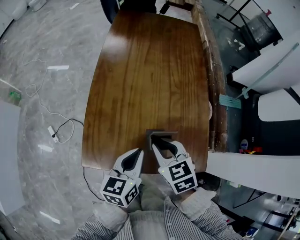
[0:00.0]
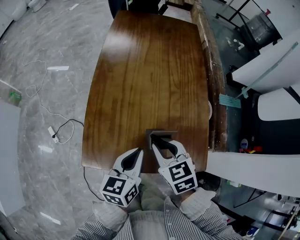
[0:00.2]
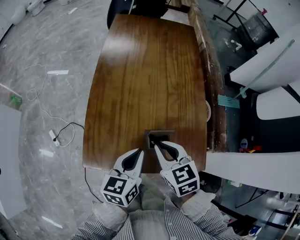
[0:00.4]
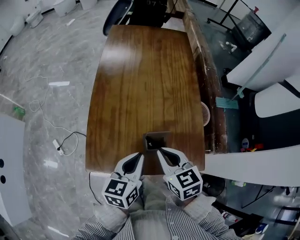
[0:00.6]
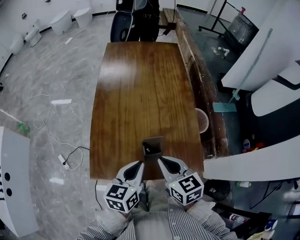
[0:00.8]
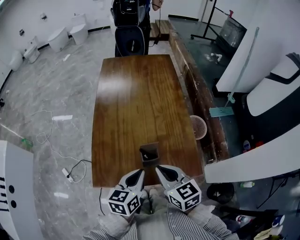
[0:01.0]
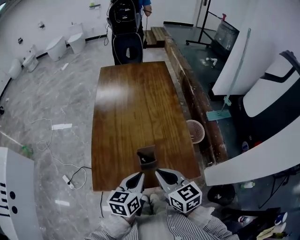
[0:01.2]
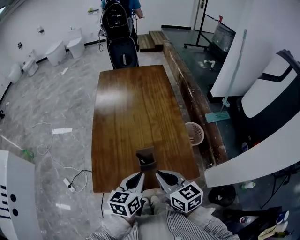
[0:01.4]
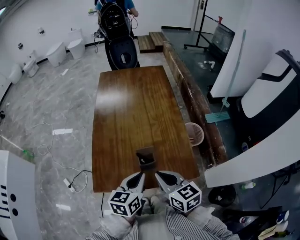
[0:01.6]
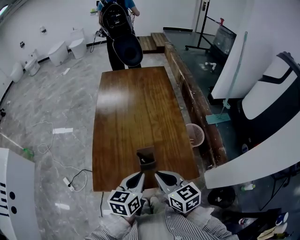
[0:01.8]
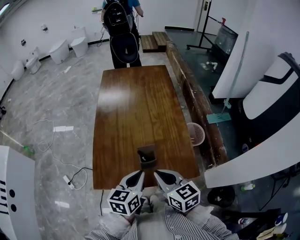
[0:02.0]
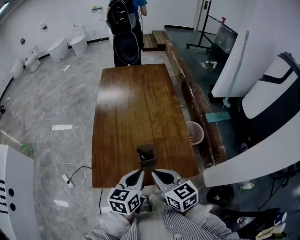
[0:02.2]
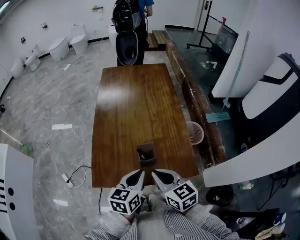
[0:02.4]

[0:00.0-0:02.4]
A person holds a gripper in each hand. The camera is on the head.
0.0 to 1.2 s: The left gripper moves some 5 cm. Meanwhile the right gripper travels upward and backward by approximately 10 cm, and turns by approximately 30 degrees.
1.2 to 2.4 s: There are only small adjustments of the grippers.

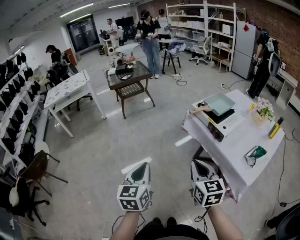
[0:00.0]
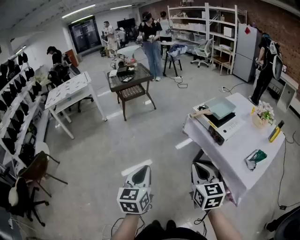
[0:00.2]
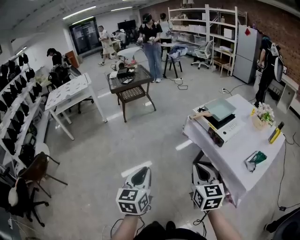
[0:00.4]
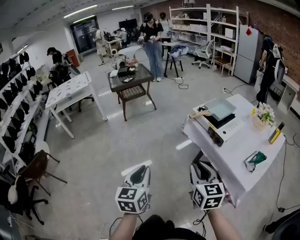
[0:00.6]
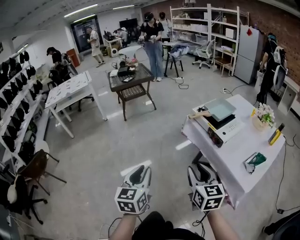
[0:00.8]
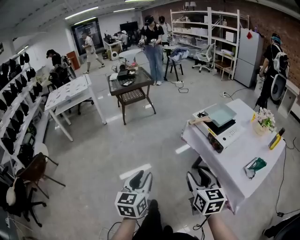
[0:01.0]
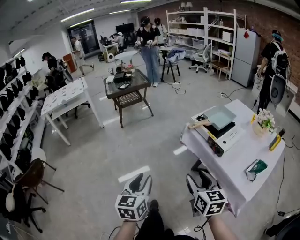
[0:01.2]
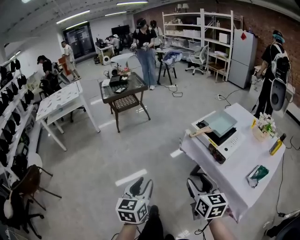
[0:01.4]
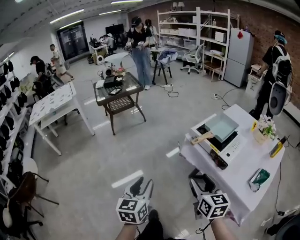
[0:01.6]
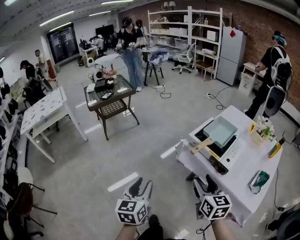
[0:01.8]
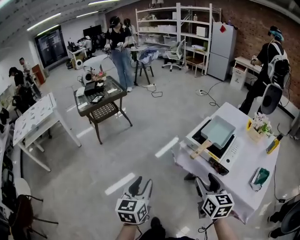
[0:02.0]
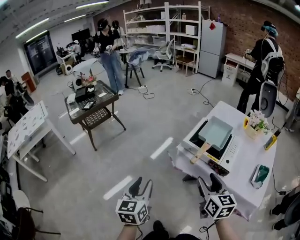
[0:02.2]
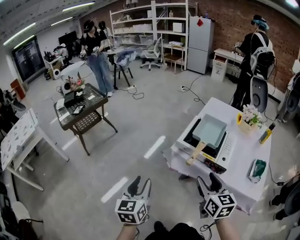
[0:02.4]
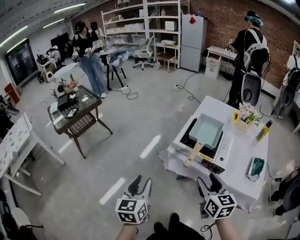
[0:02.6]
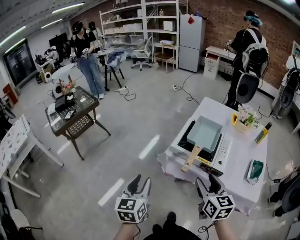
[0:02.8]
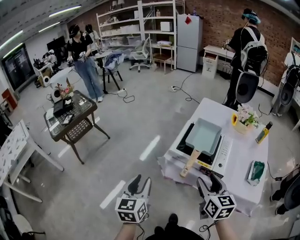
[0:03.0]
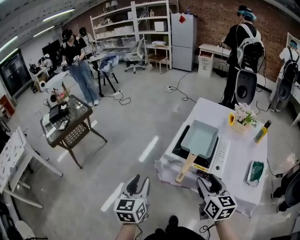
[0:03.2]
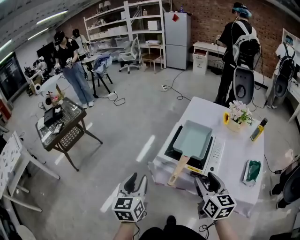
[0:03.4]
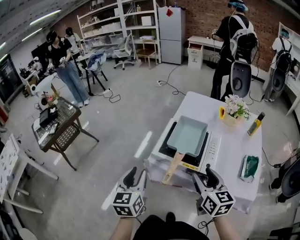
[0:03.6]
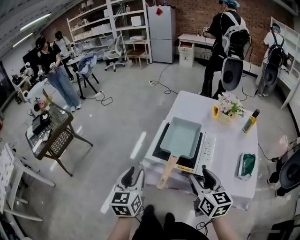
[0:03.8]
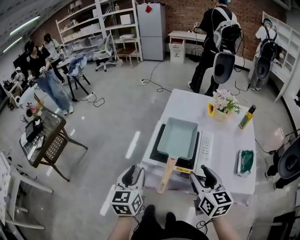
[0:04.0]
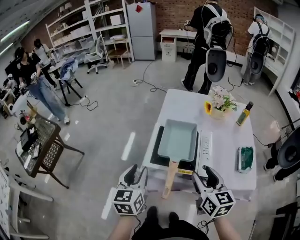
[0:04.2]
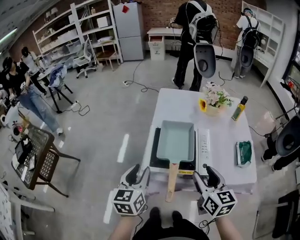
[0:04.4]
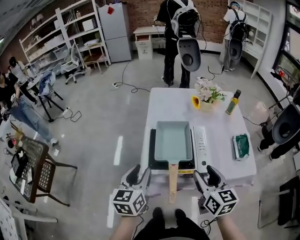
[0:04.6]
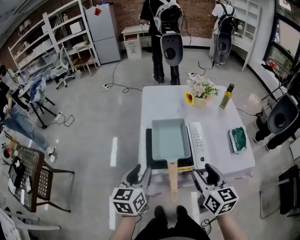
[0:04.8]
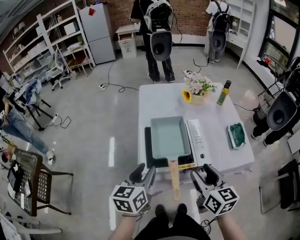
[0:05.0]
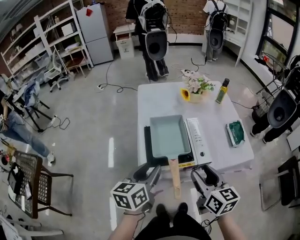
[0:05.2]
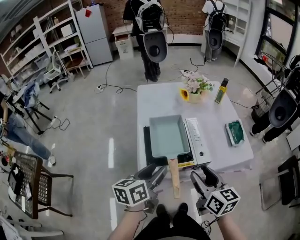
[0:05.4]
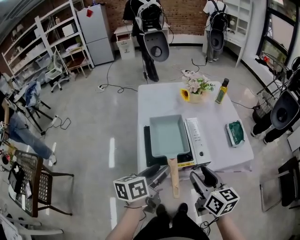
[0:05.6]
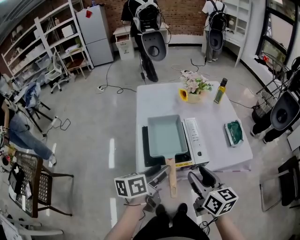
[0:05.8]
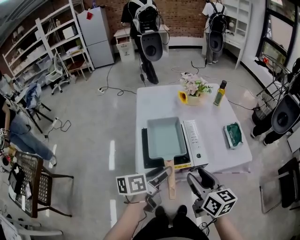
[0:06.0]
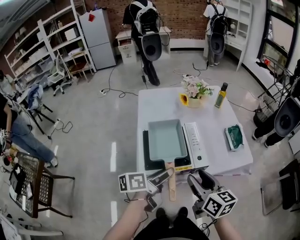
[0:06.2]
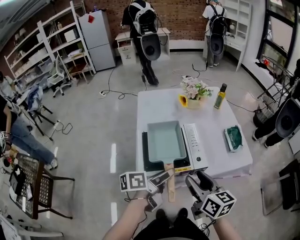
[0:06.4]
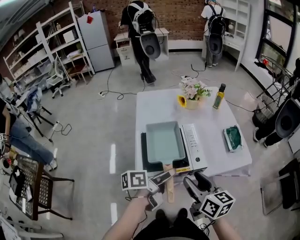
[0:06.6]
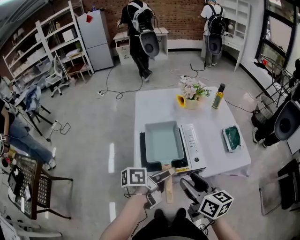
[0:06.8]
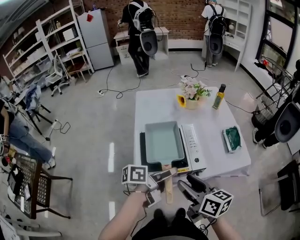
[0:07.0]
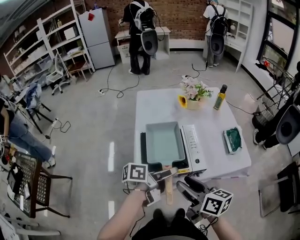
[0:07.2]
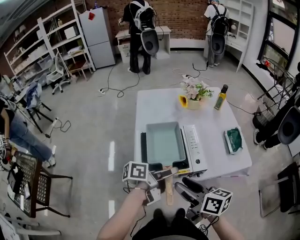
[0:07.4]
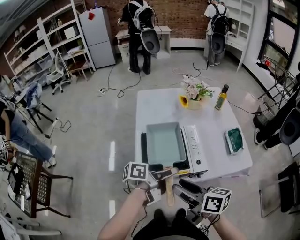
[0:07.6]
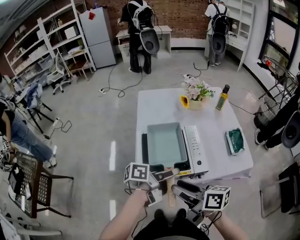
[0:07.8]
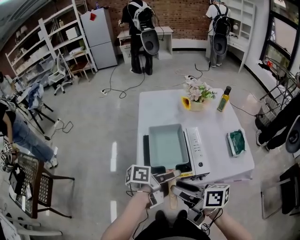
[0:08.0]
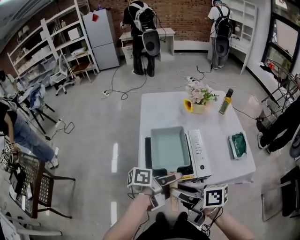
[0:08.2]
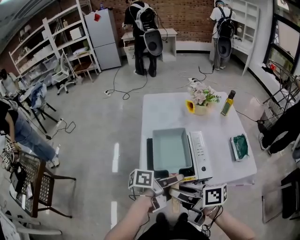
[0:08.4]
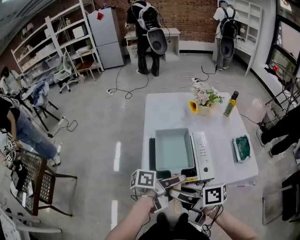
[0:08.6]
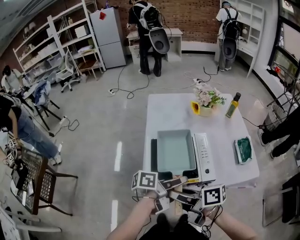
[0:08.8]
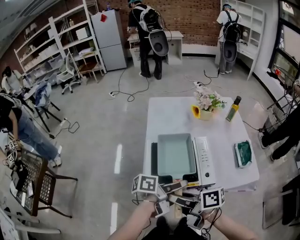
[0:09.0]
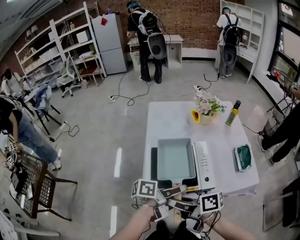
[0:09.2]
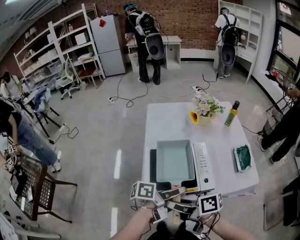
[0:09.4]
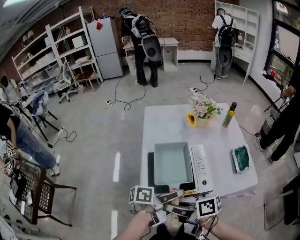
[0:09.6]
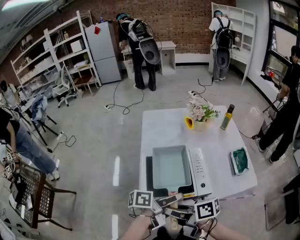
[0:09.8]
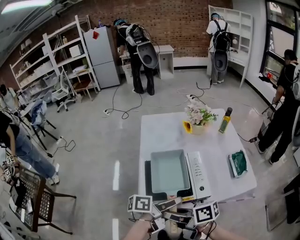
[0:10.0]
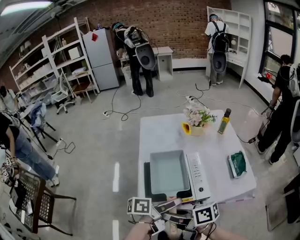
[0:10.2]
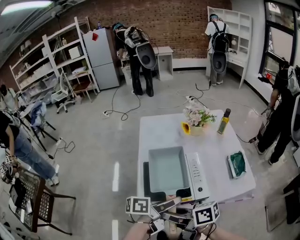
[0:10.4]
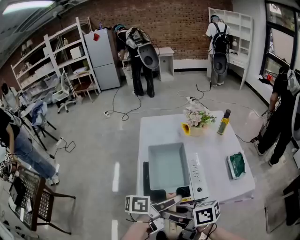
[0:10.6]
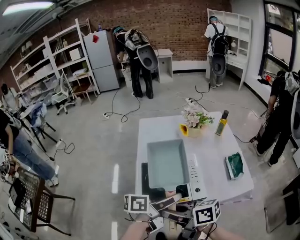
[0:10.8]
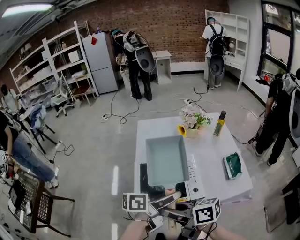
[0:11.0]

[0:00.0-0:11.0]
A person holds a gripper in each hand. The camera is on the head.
0.0 to 1.6 s: The grippers both shift forward by roughly 15 cm. The right gripper opens its fingers, while the left gripper opens up.
1.6 to 3.2 s: The left gripper moves about 30 cm, and changes its angle by approximately 20 degrees. Meanwhile the right gripper changes place by approximately 20 cm, and rotates some 30 degrees.
3.2 to 4.8 s: The right gripper ends up some 10 cm from where it was, and changes its angle by about 30 degrees; the left gripper changes place by roughly 20 cm, and swivels about 40 degrees.
4.8 to 6.2 s: The left gripper moves to the right, some 10 cm, swivels roughly 50 degrees, and opens up.
6.2 to 7.8 s: The right gripper goes about 5 cm to the left, and swivels approximately 40 degrees.
7.8 to 9.4 s: The right gripper shifts by some 5 cm, turns by some 20 degrees, and closes its fingers.
9.4 to 11.0 s: The left gripper travels upward by roughly 5 cm; the right gripper moves about 5 cm.

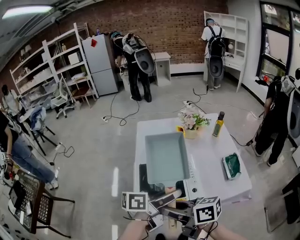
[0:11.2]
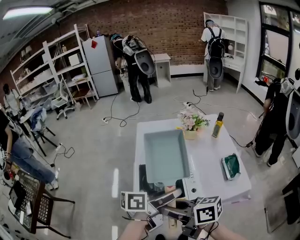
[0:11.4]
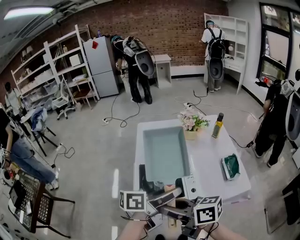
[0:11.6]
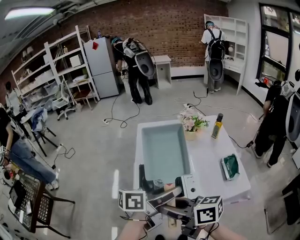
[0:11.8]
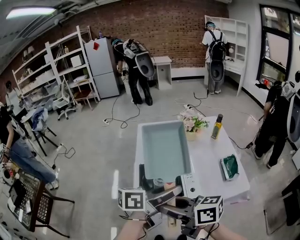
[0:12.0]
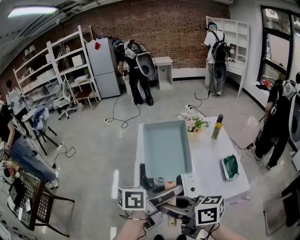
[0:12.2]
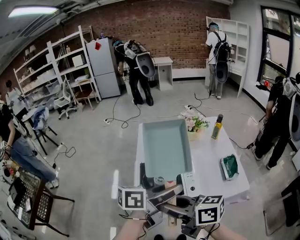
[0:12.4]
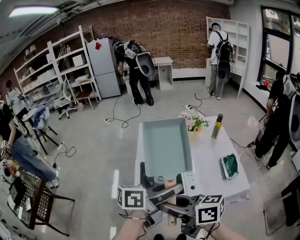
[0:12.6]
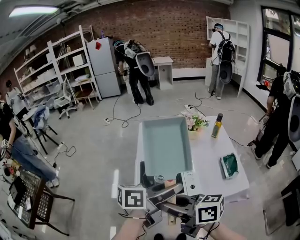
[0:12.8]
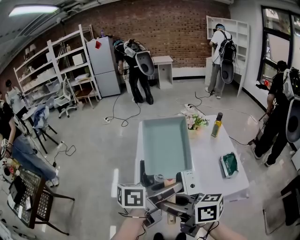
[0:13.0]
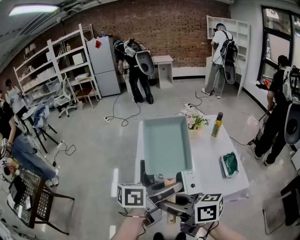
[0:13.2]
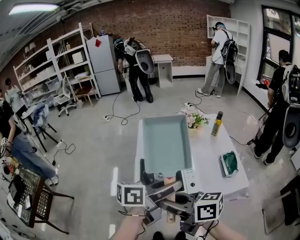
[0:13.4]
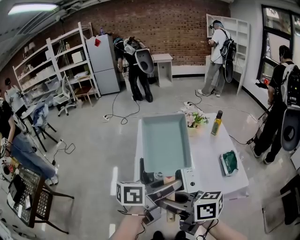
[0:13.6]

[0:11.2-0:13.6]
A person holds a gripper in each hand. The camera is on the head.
11.2 to 12.4 s: The two grippers go some 5 cm upward.
12.4 to 13.6 s: Neither gripper changes place.

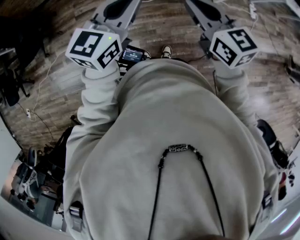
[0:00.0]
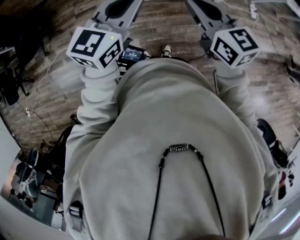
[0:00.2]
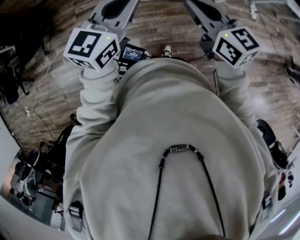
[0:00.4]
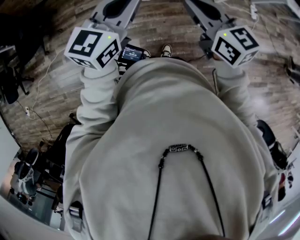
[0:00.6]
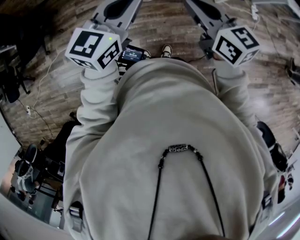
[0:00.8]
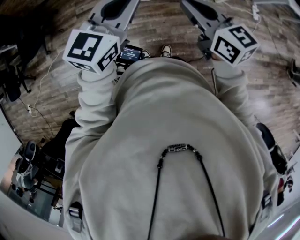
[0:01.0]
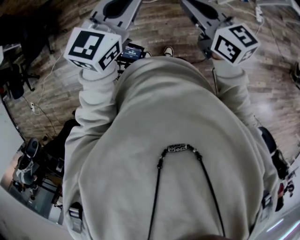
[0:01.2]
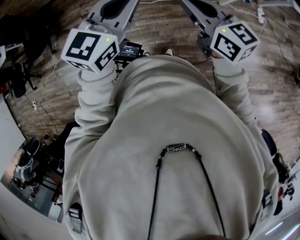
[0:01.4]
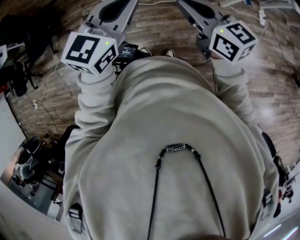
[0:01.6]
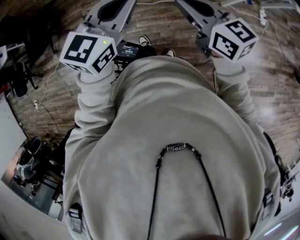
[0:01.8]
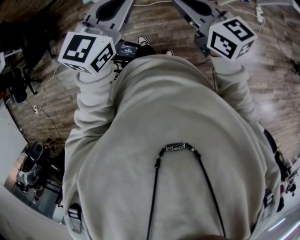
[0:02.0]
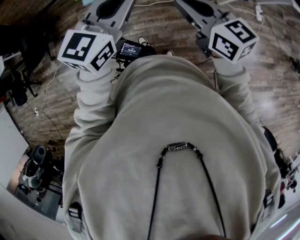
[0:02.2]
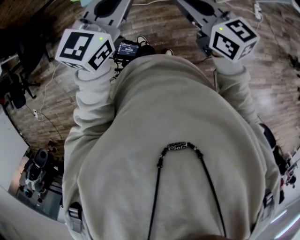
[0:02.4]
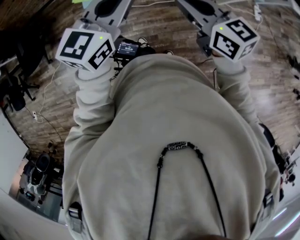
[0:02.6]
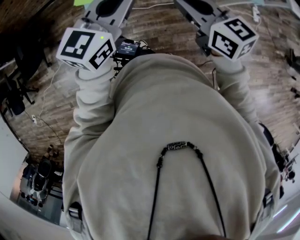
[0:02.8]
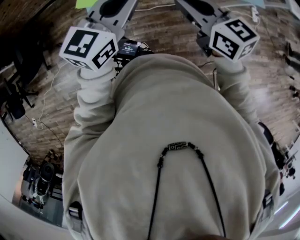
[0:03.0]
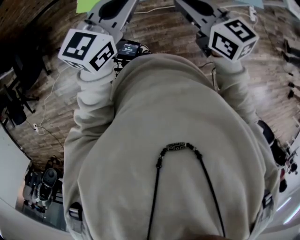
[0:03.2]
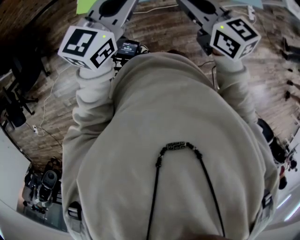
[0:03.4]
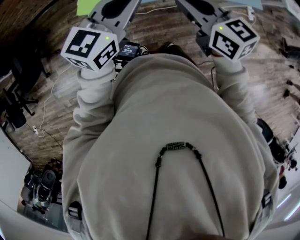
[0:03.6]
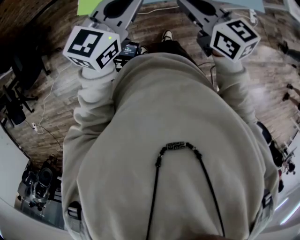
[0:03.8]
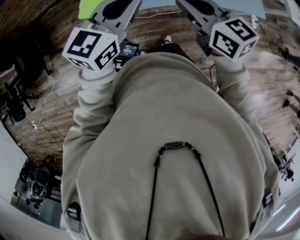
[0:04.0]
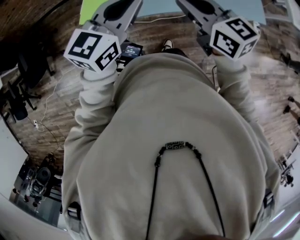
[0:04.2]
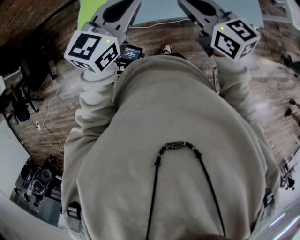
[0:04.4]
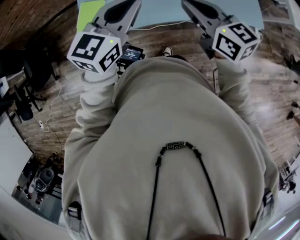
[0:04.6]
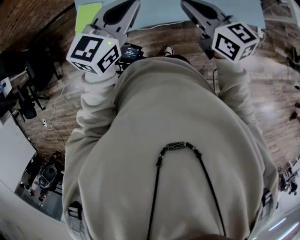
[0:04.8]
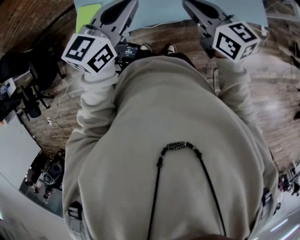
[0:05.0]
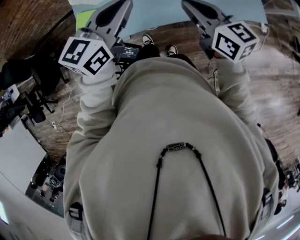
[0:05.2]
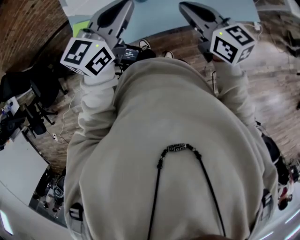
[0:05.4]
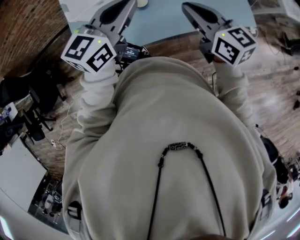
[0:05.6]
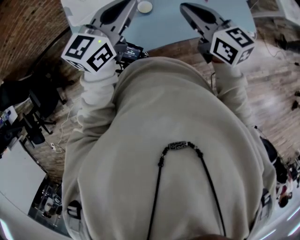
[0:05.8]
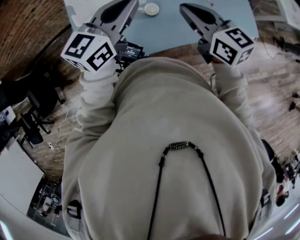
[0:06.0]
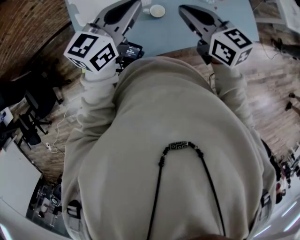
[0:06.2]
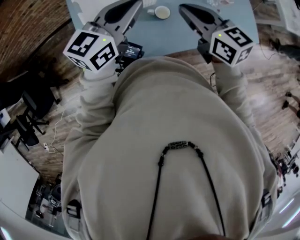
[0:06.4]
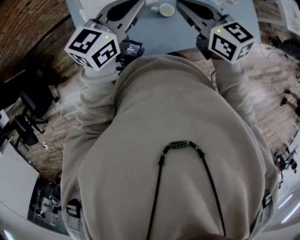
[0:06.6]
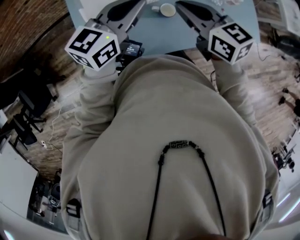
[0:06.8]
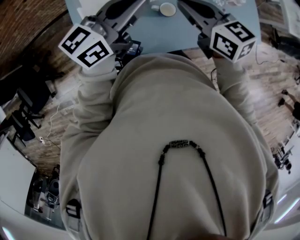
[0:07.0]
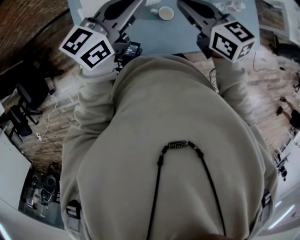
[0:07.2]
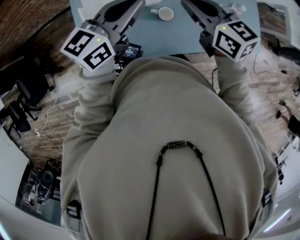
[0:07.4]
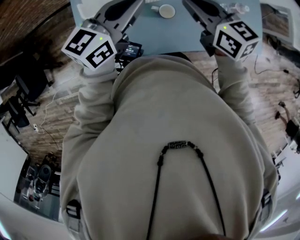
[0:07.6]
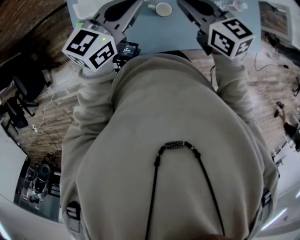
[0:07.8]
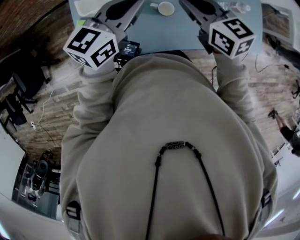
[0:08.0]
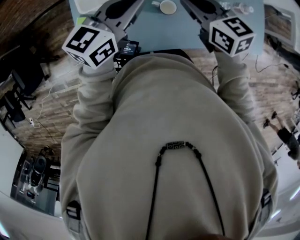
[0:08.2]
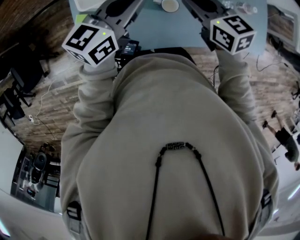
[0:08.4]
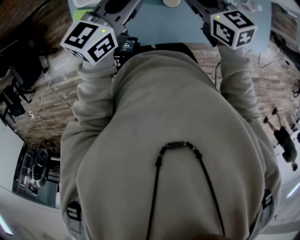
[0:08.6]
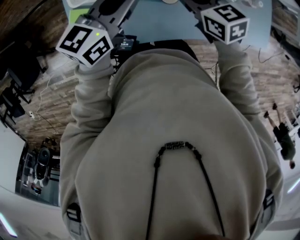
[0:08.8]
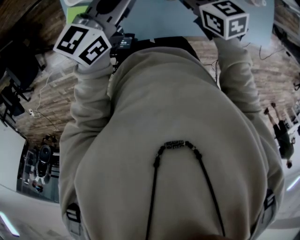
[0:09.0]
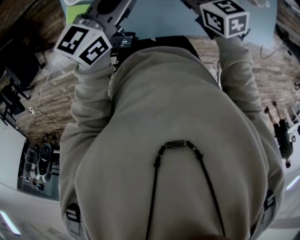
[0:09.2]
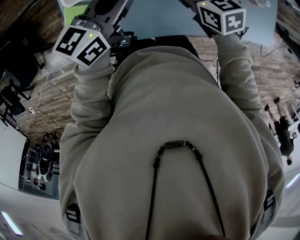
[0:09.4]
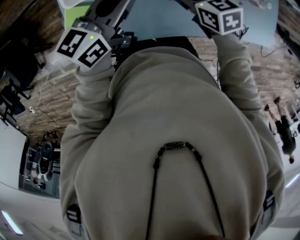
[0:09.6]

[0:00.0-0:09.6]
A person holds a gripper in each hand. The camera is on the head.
0.0 to 1.6 s: The grippers both shift to the right by roughly 5 cm.
1.6 to 3.2 s: Both grippers travel together forward and to the left, approximately 20 cm.
3.2 to 4.8 s: The grippers both shift to the right and forward by some 20 cm.
4.8 to 6.4 s: The two grippers go some 15 cm forward and to the left.
6.4 to 8.0 s: The right gripper shifts approximately 5 cm forward.
8.0 to 9.6 s: The right gripper travels downward by roughly 15 cm, turns by roughly 20 degrees, and opens its fingers, while the left gripper shifts about 5 cm downward.
